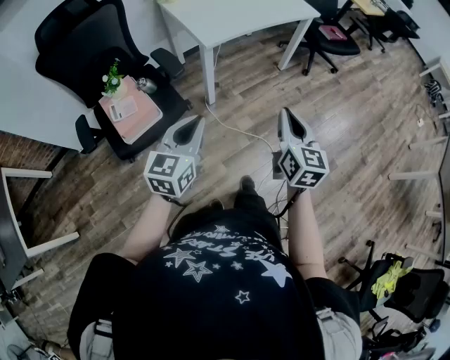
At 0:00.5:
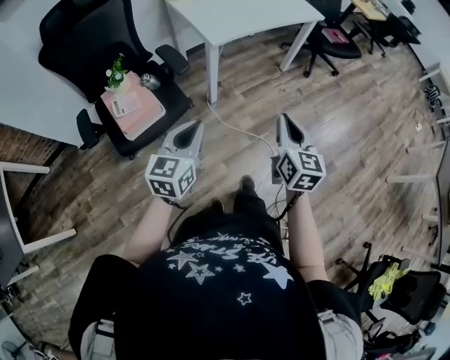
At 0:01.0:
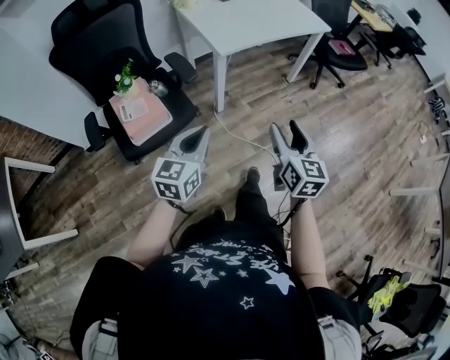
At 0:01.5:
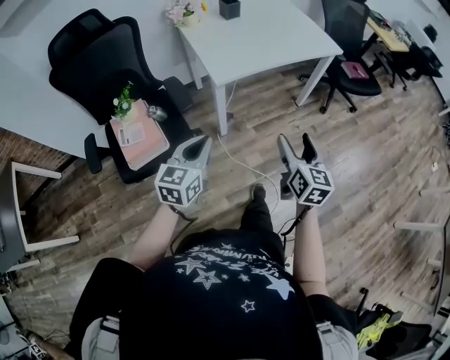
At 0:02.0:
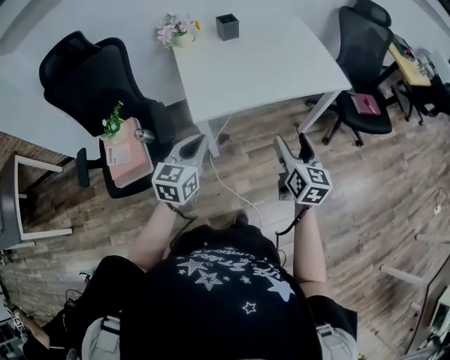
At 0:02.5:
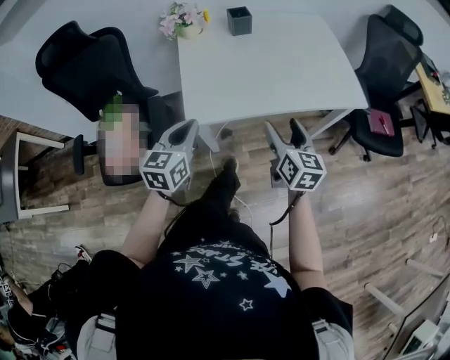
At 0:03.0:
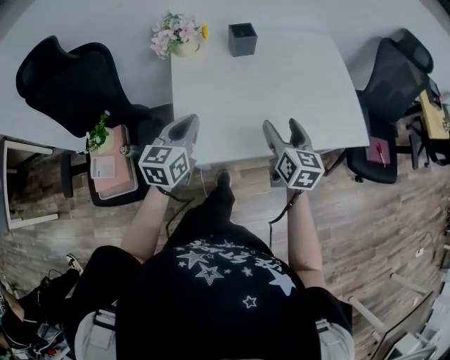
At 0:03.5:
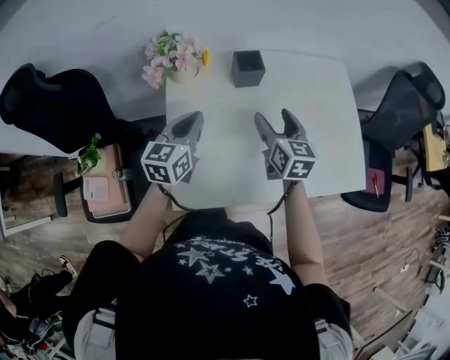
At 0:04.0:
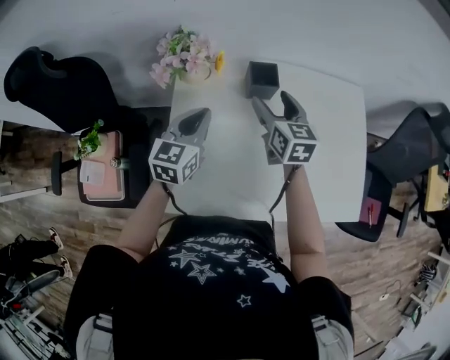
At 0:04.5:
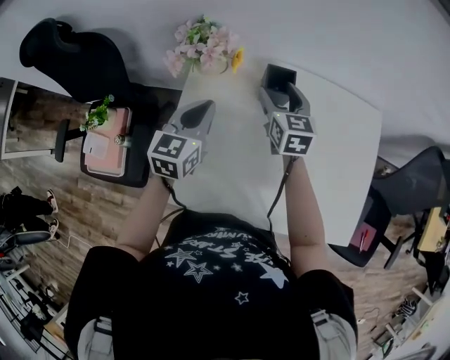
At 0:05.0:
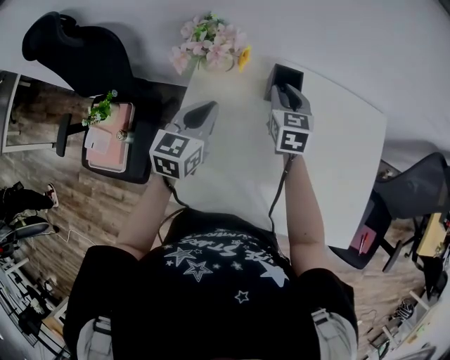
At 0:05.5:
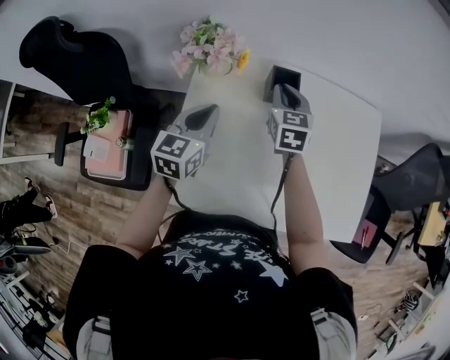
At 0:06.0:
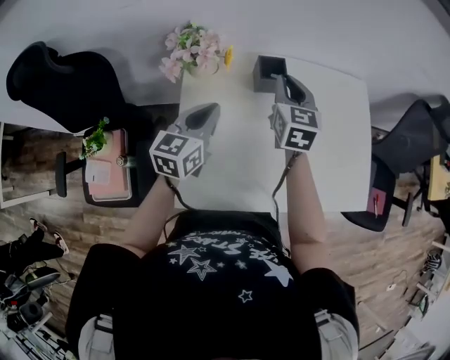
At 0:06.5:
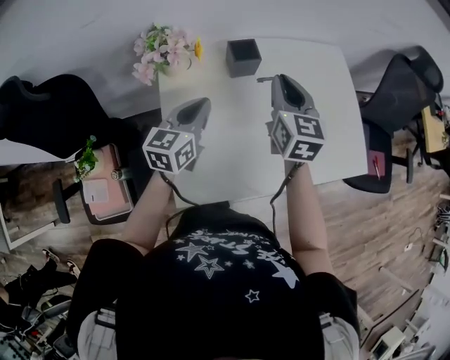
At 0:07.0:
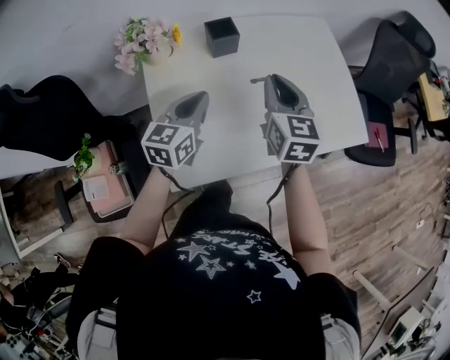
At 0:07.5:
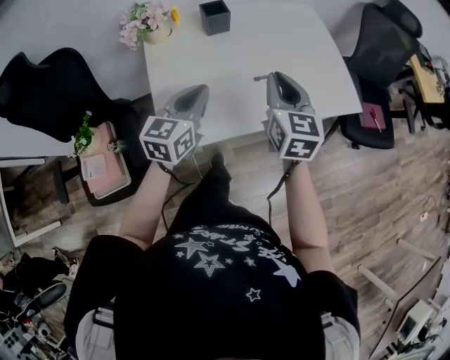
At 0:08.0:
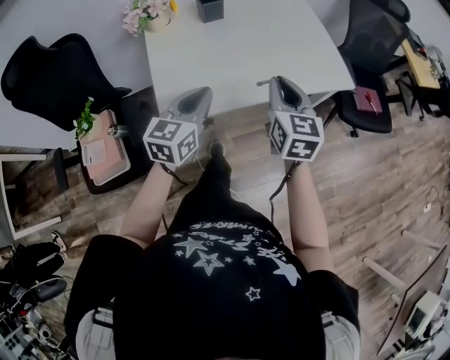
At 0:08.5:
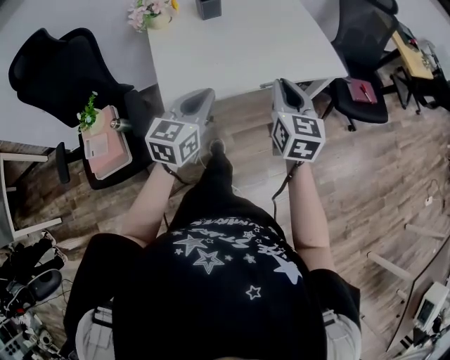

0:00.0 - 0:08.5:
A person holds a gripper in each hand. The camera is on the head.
0:00.0 - 0:02.0: Both grippers travel together forward, roughly 35 cm. The right gripper opens its fingers.
0:02.0 - 0:04.0: The pair of grippers is taken forward, approximately 50 cm. The right gripper rotates about 30 degrees.
0:04.0 - 0:06.5: The right gripper shifts by approximately 10 cm, rotates some 20 degrees, and closes its fingers.
0:06.5 - 0:08.5: Both grippers move backward and to the right, about 35 cm.

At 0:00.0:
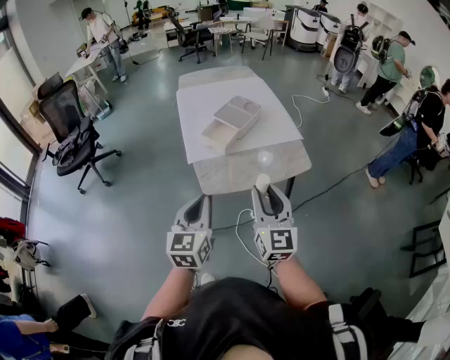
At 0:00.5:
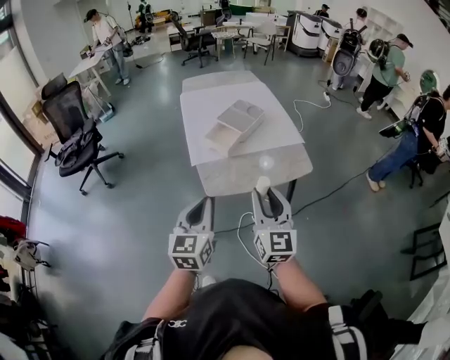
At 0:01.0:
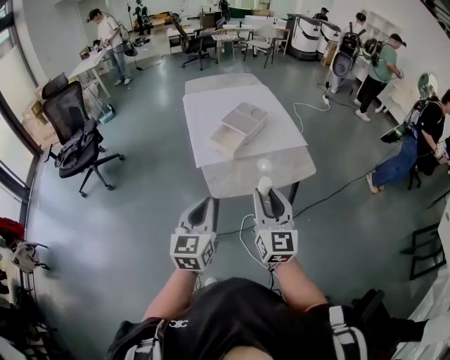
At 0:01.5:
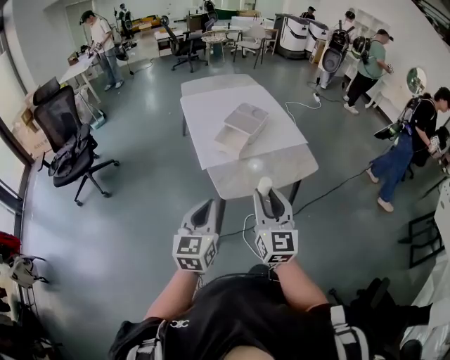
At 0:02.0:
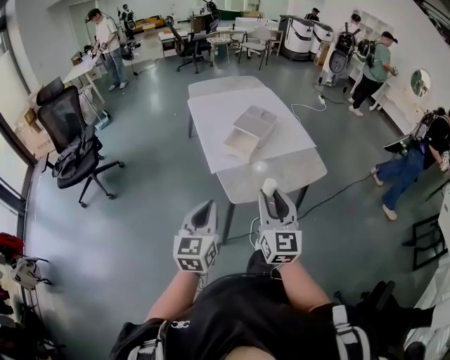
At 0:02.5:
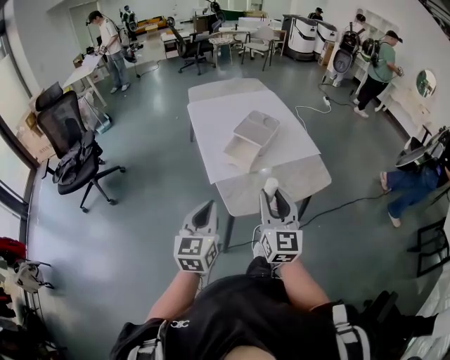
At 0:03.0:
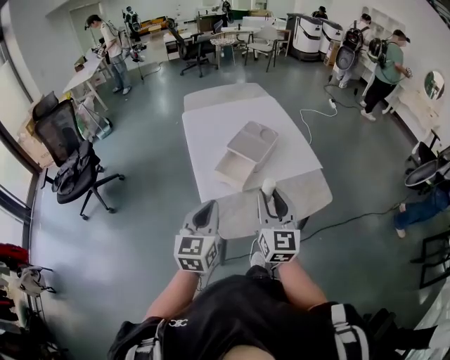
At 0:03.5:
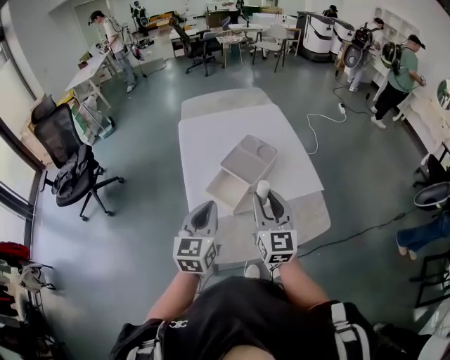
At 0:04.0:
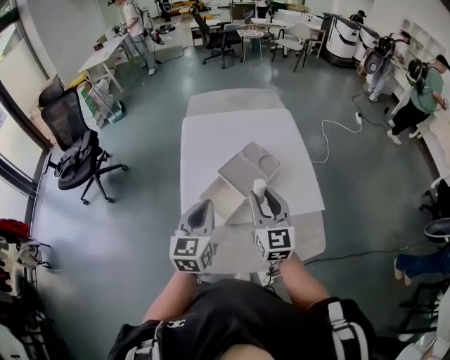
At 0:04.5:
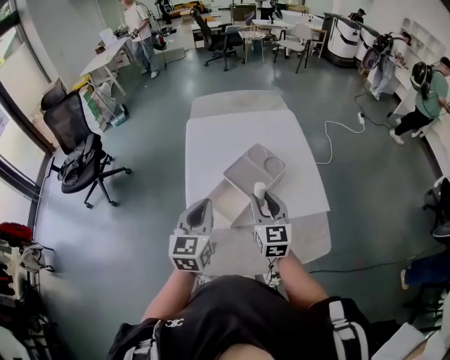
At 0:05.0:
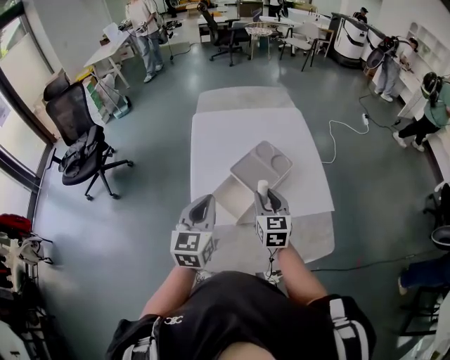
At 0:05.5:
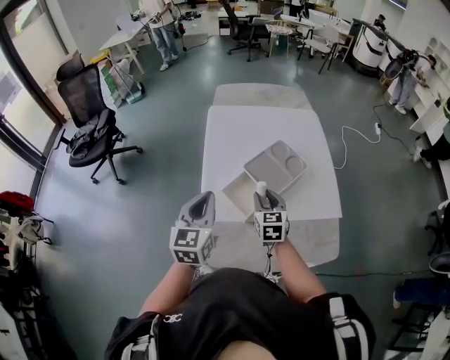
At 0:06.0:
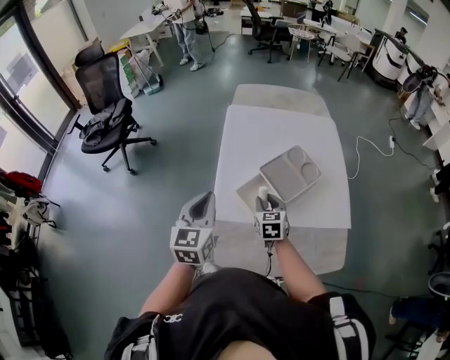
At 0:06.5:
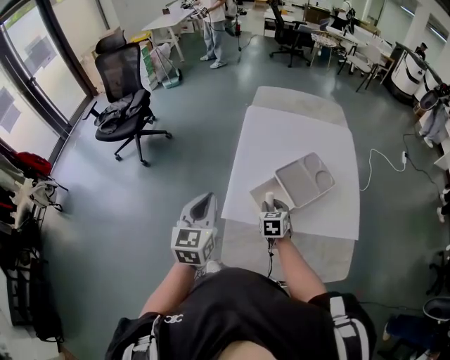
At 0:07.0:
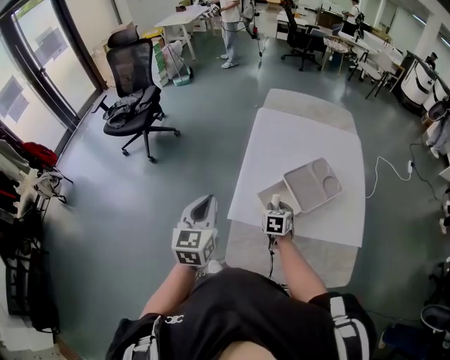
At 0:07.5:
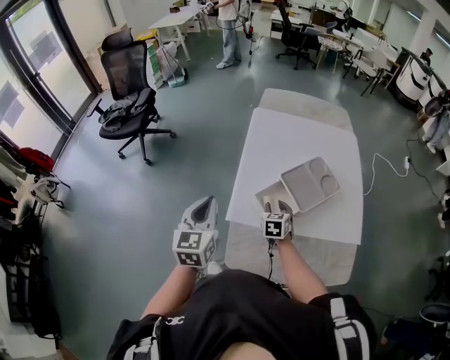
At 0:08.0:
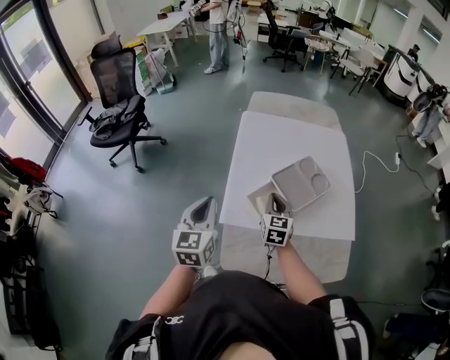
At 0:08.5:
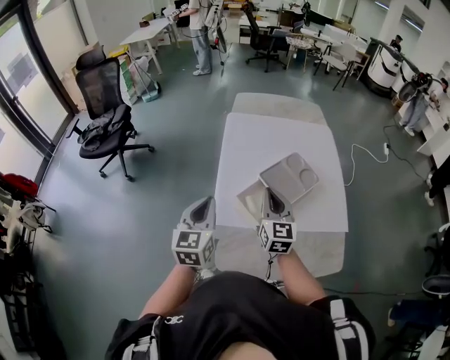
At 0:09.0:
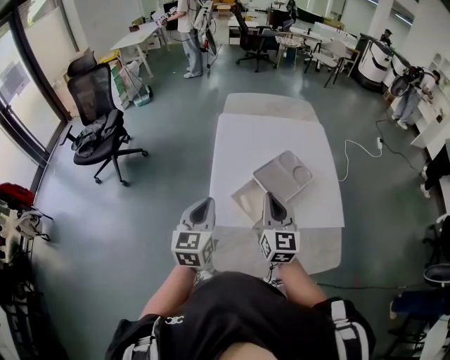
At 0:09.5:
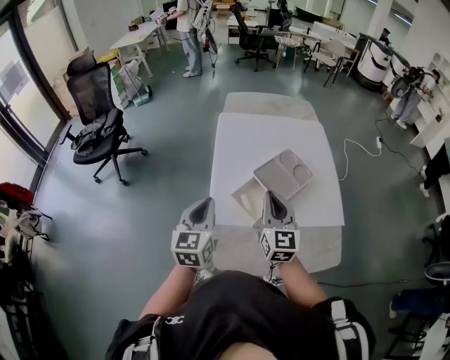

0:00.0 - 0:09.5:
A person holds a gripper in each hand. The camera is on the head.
0:00.0 - 0:02.0: The grippers both shift to the left by about 15 cm.
0:02.0 - 0:04.0: The pair of grippers is taken forward, roughly 40 cm.
0:04.0 - 0:05.5: The right gripper shifts approximately 15 cm downward, to the left and forward, and rotates about 20 degrees. Meanwhile the left gripper goes approximately 10 cm to the left.
0:05.5 - 0:07.5: The right gripper goes about 10 cm downward and to the left, while the left gripper is displaced to the left by roughly 10 cm.
0:07.5 - 0:09.5: The right gripper moves upward, roughly 20 cm, tilts its fingers approximately 40 degrees upward, and closes its fingers, while the left gripper heads to the right, covering about 5 cm.

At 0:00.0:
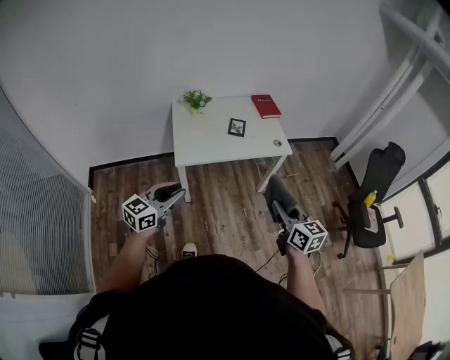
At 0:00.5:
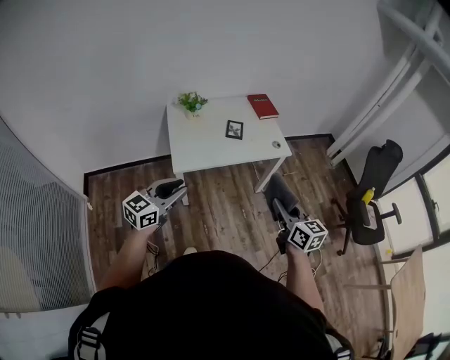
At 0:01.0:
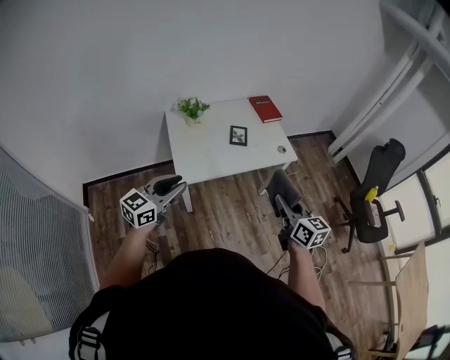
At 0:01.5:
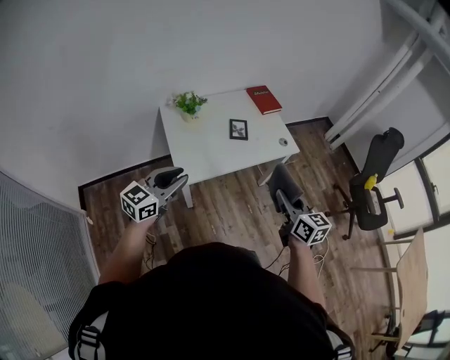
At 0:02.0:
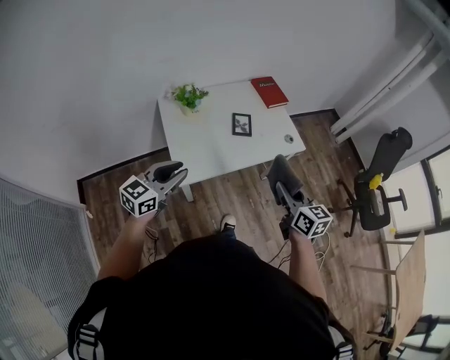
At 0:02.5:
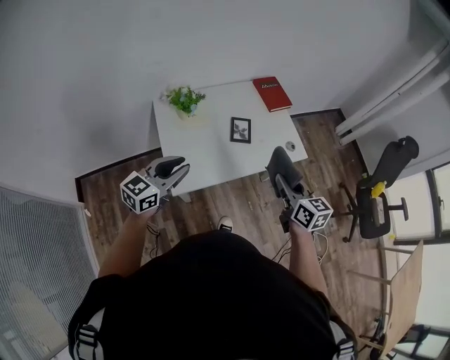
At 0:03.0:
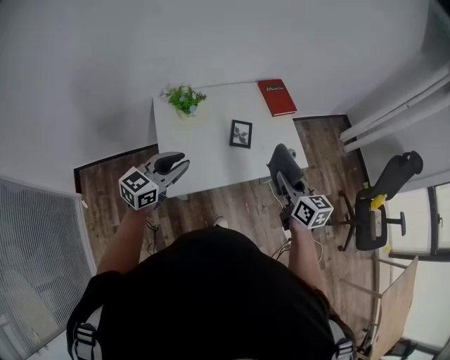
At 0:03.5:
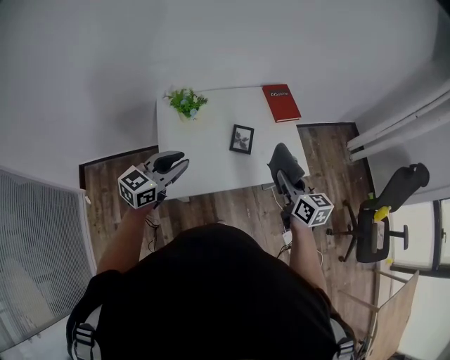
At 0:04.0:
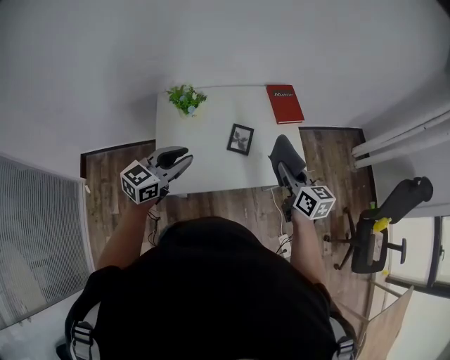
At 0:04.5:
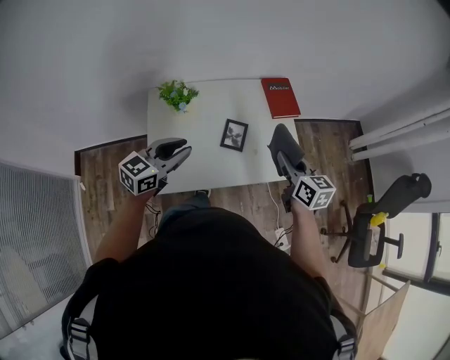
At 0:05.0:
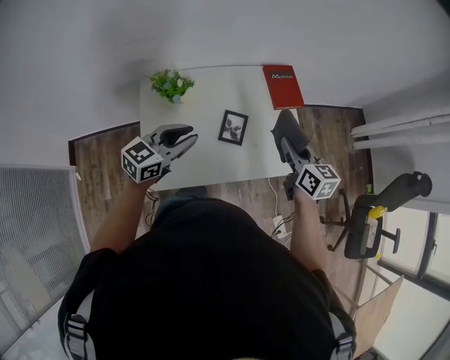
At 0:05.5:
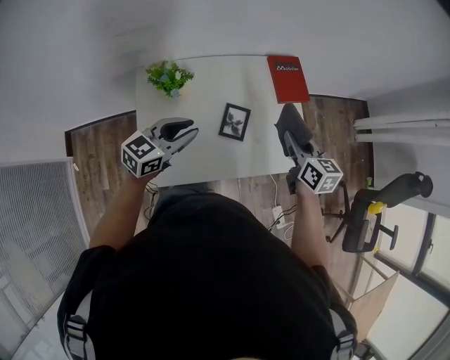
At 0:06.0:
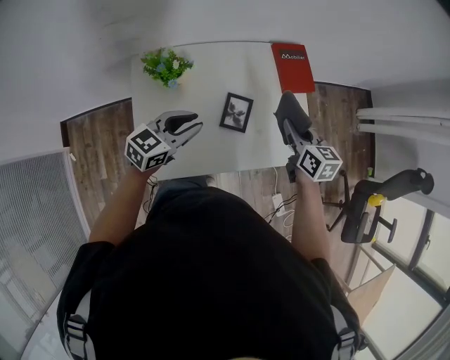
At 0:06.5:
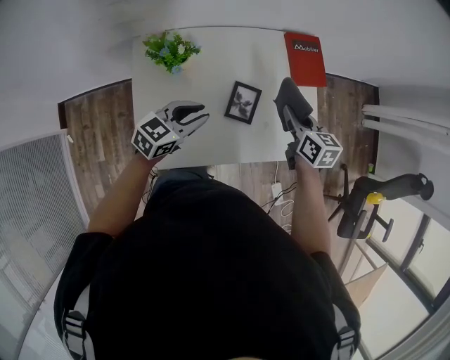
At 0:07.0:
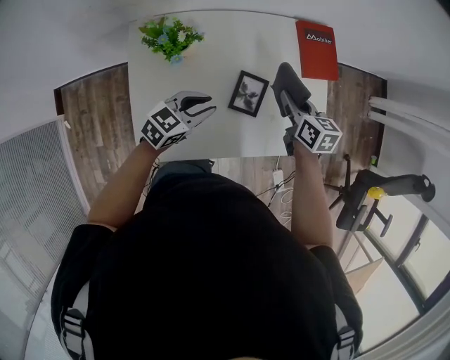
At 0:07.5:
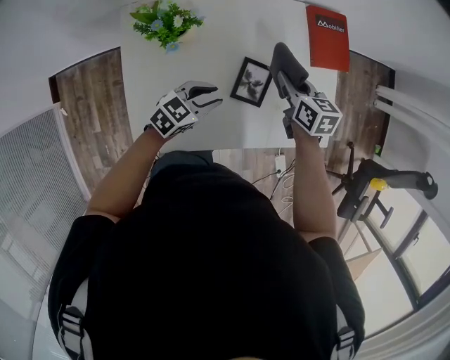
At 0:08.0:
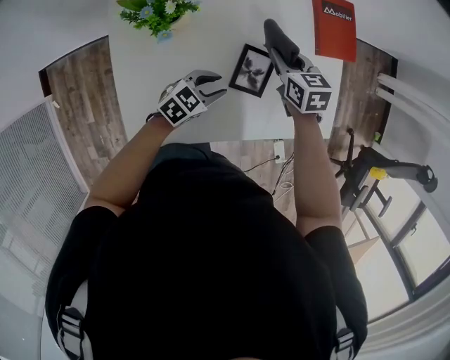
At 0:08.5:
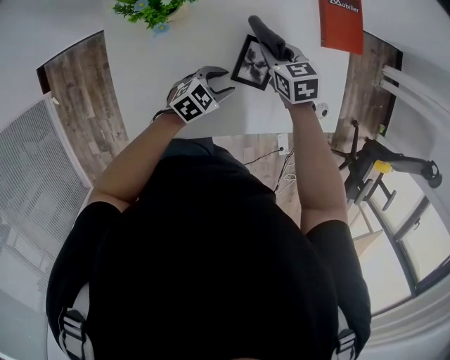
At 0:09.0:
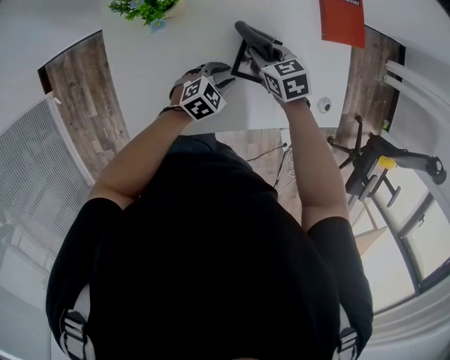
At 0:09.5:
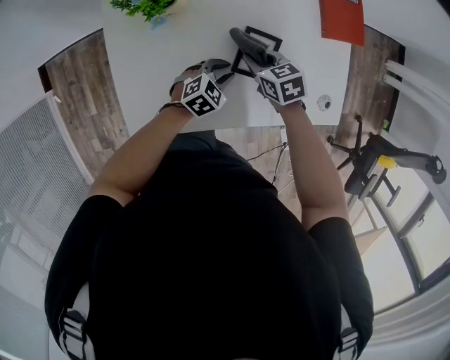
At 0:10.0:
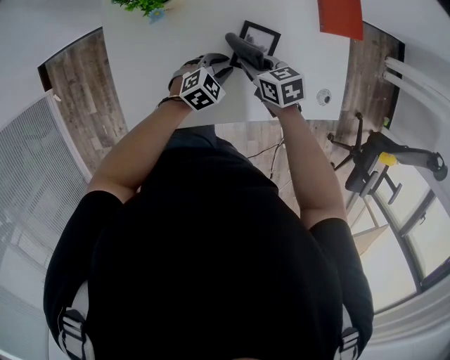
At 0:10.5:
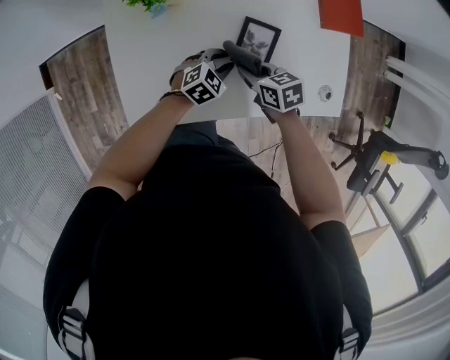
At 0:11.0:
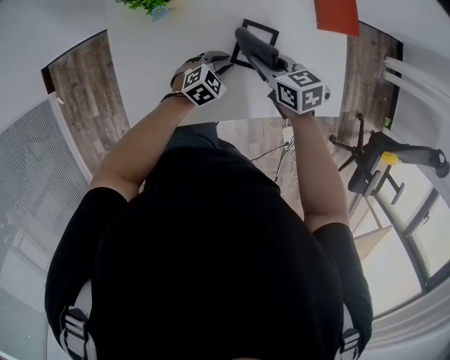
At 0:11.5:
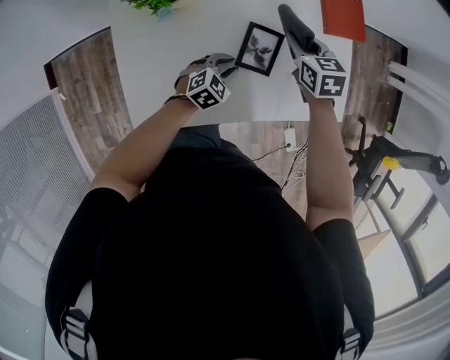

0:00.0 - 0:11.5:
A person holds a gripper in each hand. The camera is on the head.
0:00.0 - 0:02.0: Both grippers travel together forward and to the left, some 30 cm.
0:02.0 - 0:04.0: The right gripper moves forward, some 25 cm. Meanwhile the left gripper moves forward and to the right, approximately 20 cm.
0:04.0 - 0:06.0: Both grippers move forward and downward, roughly 20 cm.
0:06.0 - 0:07.5: The right gripper travels downward, to the left and forward by some 20 cm. The left gripper shifts approximately 20 cm downward.
0:07.5 - 0:09.5: The left gripper heads downward, covering some 10 cm, while the right gripper goes approximately 15 cm downward, to the left and backward, and swivels roughly 20 degrees.
0:09.5 - 0:11.5: The right gripper changes place by about 15 cm.
